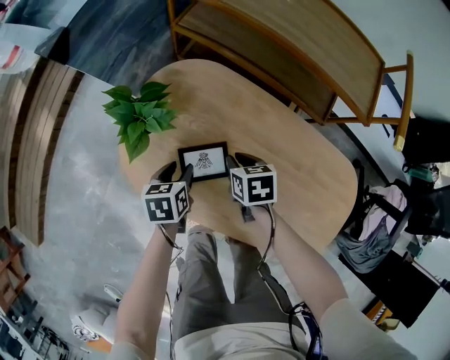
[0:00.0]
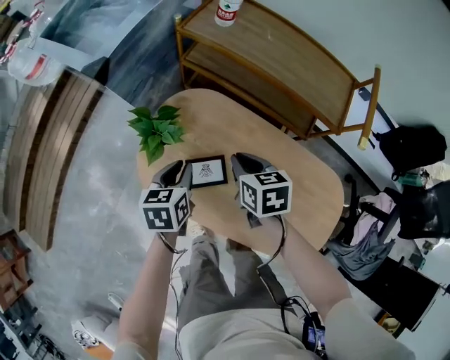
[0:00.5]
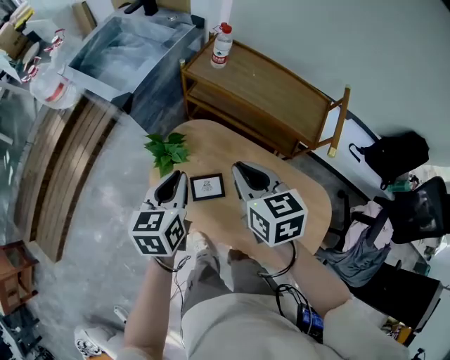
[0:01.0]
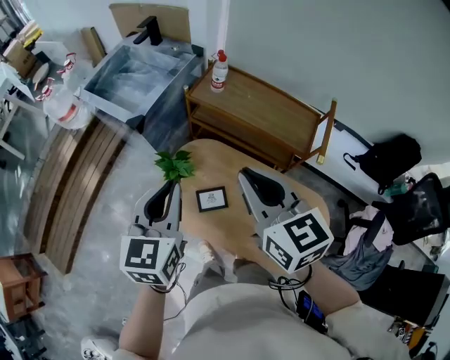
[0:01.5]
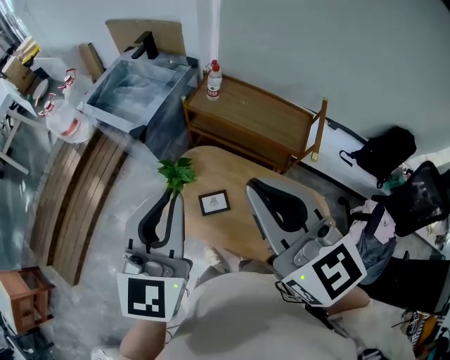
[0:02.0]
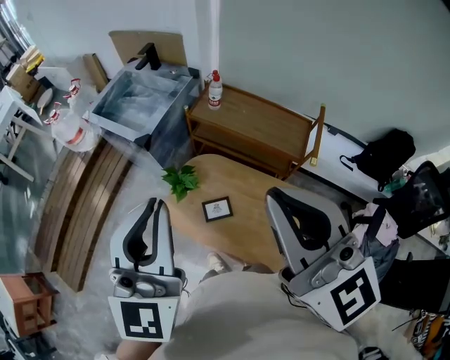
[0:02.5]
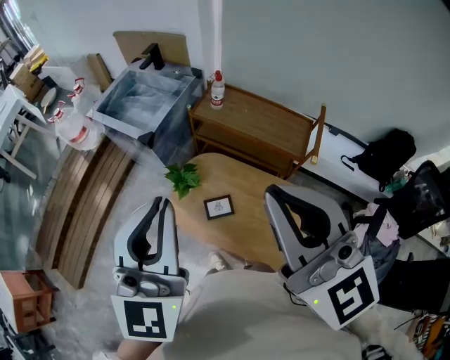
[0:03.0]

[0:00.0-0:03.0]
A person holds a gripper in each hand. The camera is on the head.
0:00.0 to 0:01.5: Both grippers travel together upward, approximately 60 cm. The left gripper angles its fingers upward, by some 40 degrees, and closes up. Meanwhile the right gripper tips its fingers upward by approximately 50 degrees.
0:01.5 to 0:03.0: Both grippers travel together upward and backward, approximately 25 cm. The right gripper changes its angle by approximately 30 degrees. Meanwhile the left gripper turns by about 30 degrees.

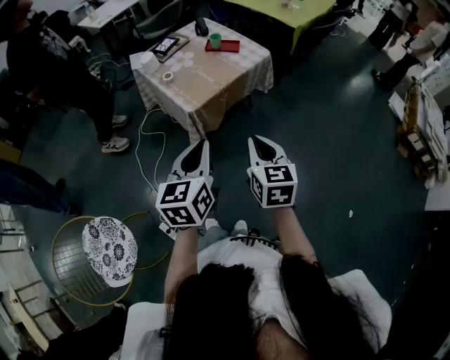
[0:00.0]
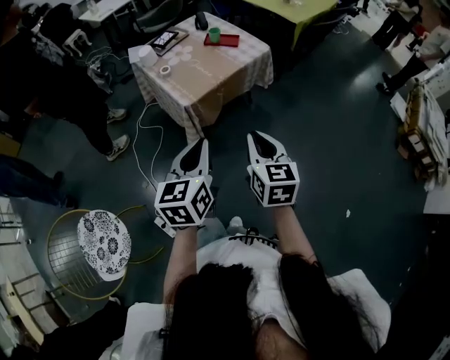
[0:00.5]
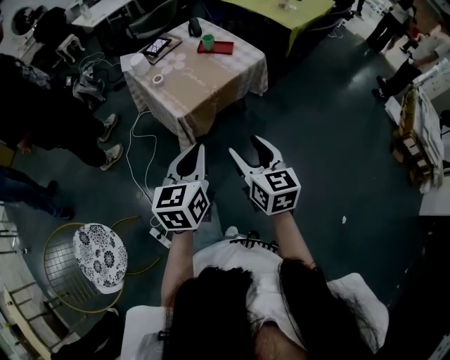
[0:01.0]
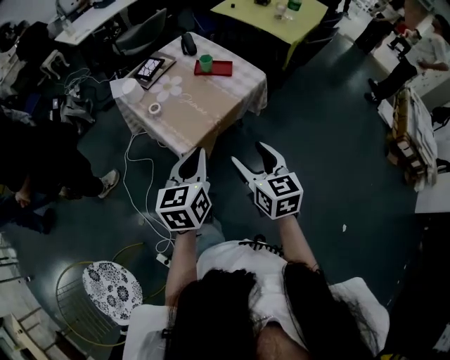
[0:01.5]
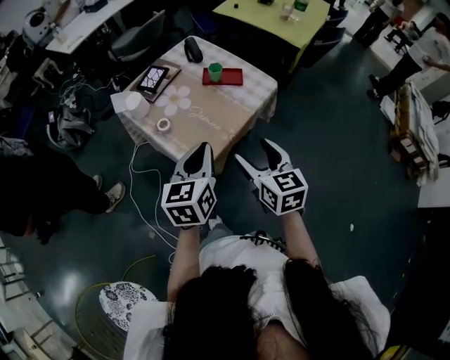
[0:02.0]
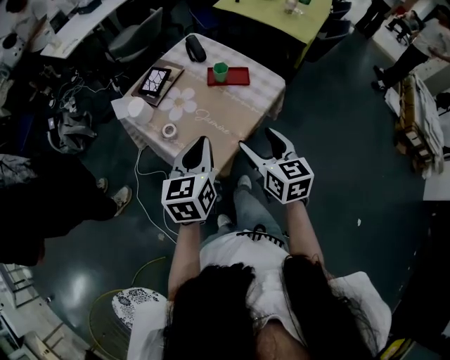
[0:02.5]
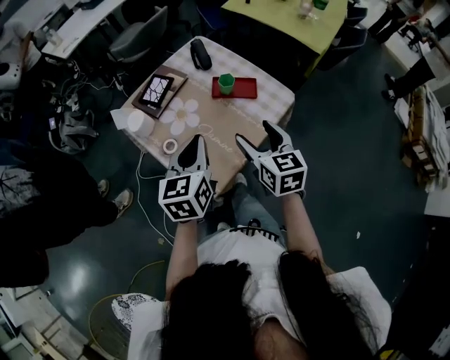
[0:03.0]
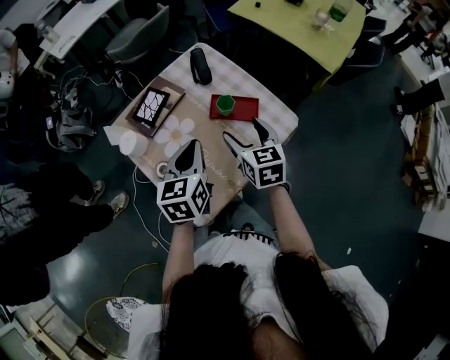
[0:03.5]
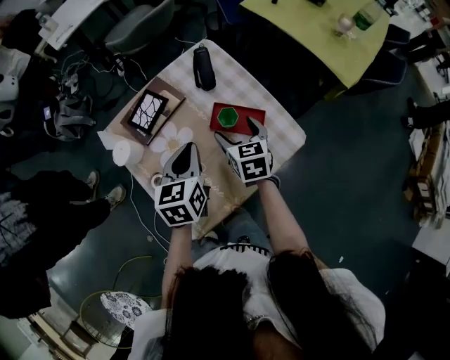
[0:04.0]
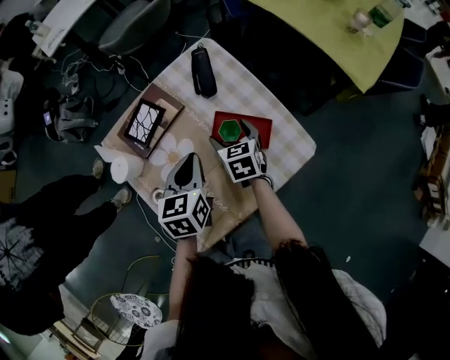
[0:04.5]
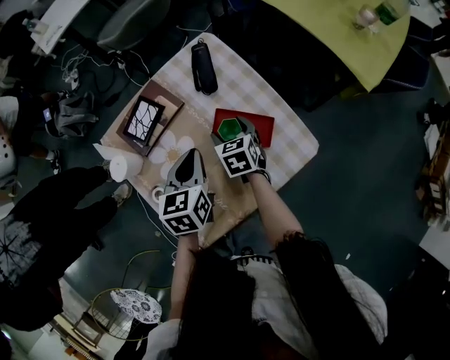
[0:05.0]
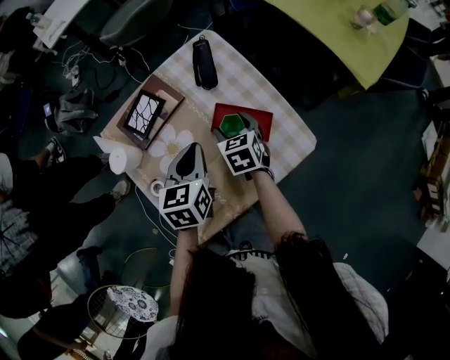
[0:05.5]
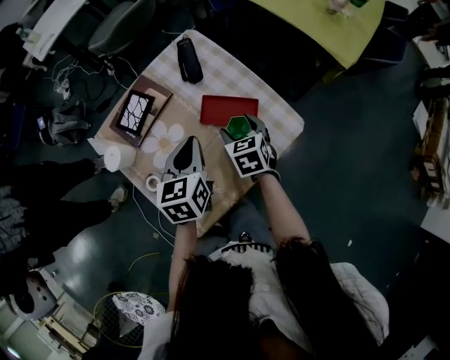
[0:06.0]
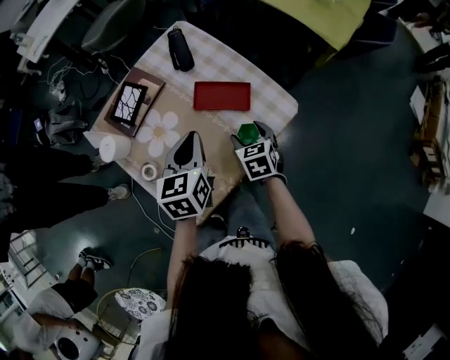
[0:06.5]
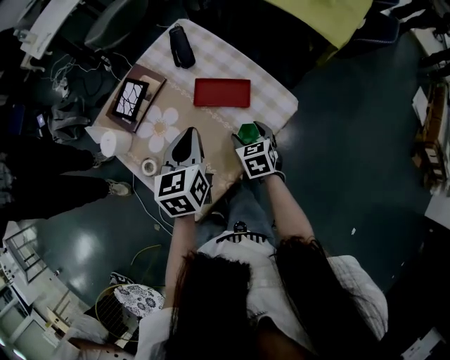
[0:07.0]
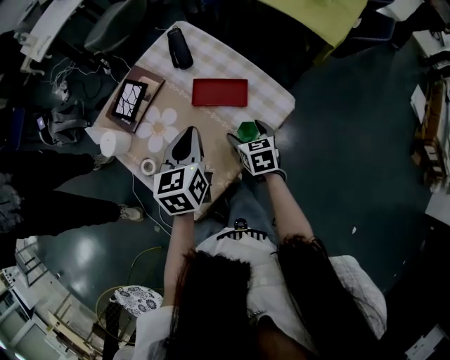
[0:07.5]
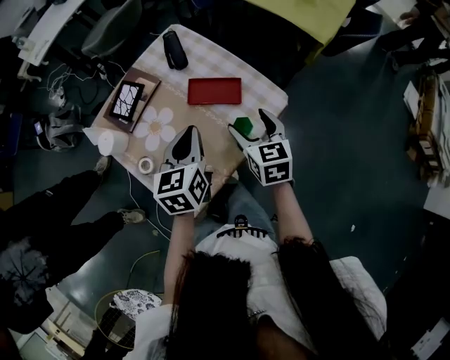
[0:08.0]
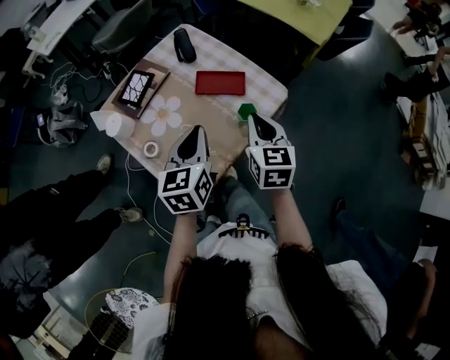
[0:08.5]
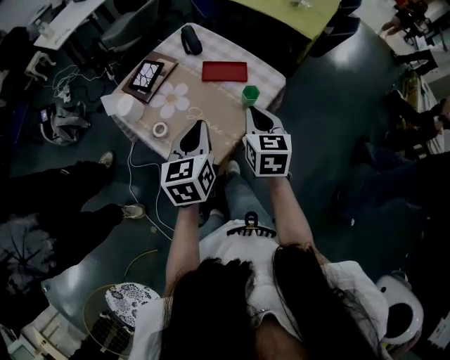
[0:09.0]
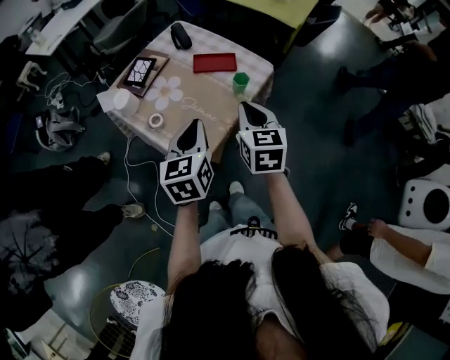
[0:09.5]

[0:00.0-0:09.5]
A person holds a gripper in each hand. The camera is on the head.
0:00.0 to 0:02.0: The grippers both shift forward by roughly 30 cm. The right gripper opens up.
0:02.0 to 0:04.0: Both grippers move forward, roughly 35 cm. The left gripper swivels about 20 degrees.
0:04.0 to 0:05.5: The left gripper changes place by some 5 cm. The right gripper moves downward, about 5 cm.
0:05.5 to 0:07.5: The right gripper moves backward and to the right, approximately 15 cm. The left gripper travels backward by some 5 cm.
0:07.5 to 0:09.5: The left gripper is displaced backward by about 20 cm; the right gripper is displaced upward and backward by some 30 cm, rotates some 30 degrees, and closes its fingers.

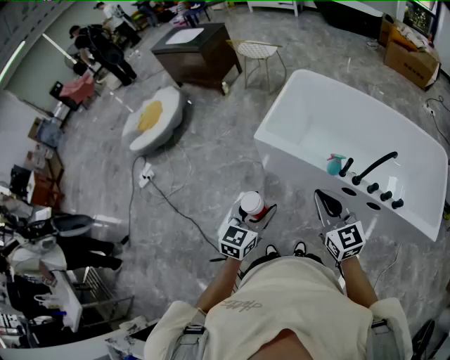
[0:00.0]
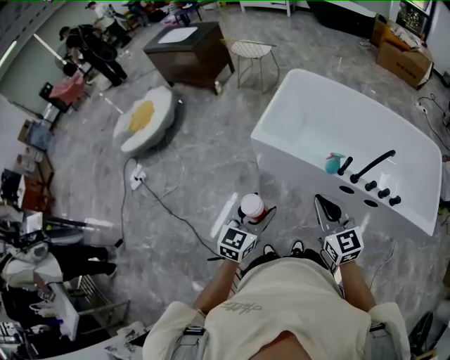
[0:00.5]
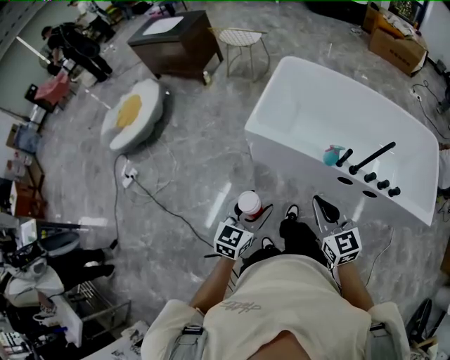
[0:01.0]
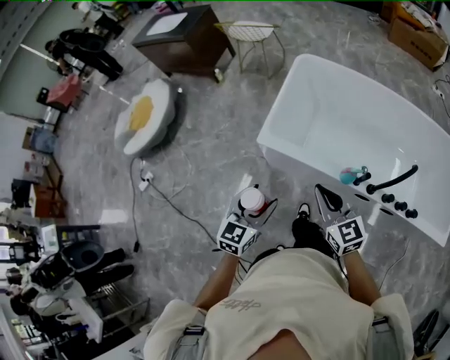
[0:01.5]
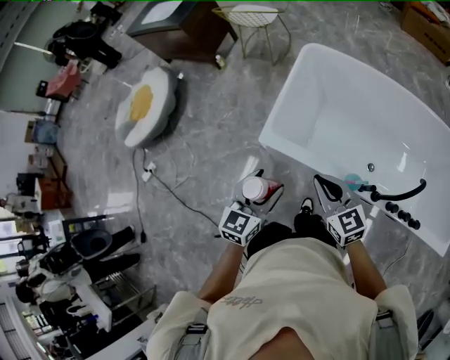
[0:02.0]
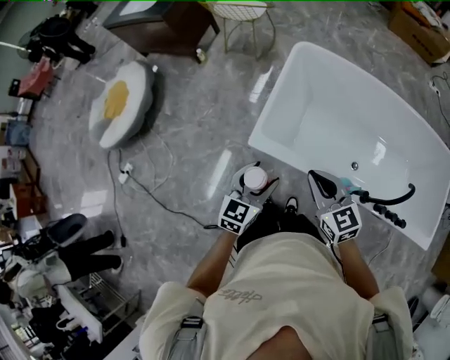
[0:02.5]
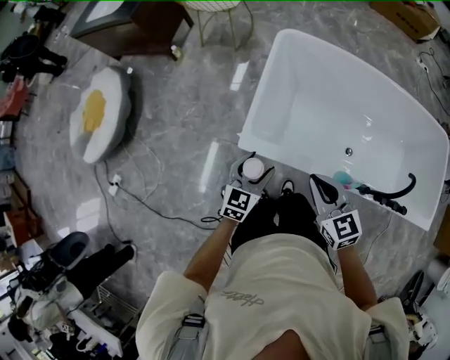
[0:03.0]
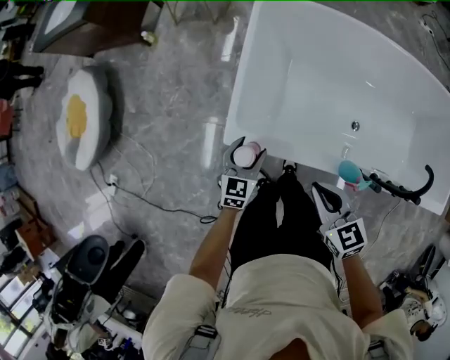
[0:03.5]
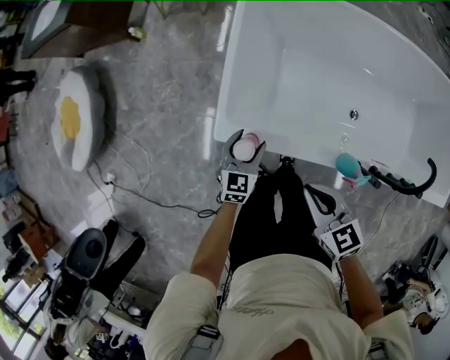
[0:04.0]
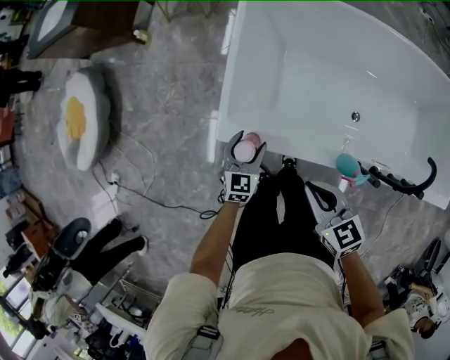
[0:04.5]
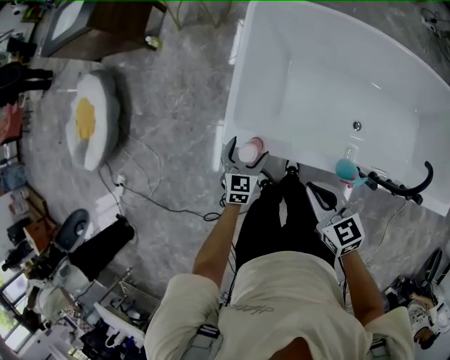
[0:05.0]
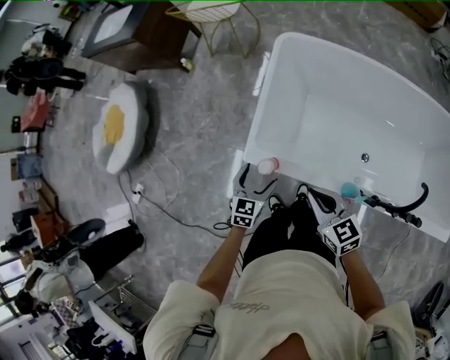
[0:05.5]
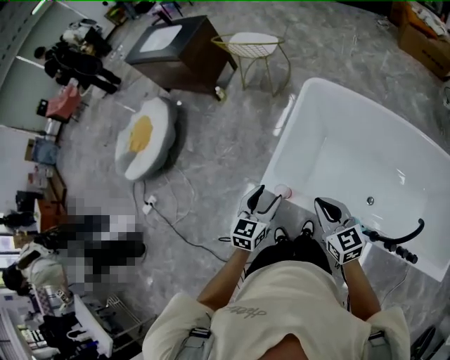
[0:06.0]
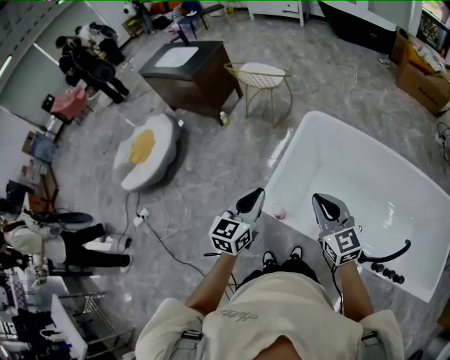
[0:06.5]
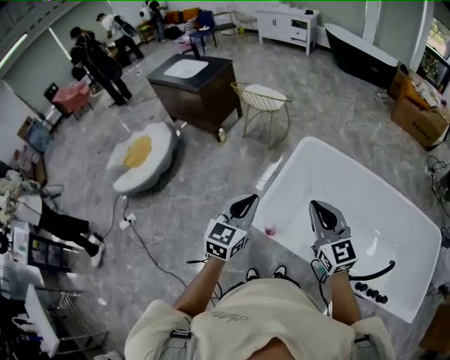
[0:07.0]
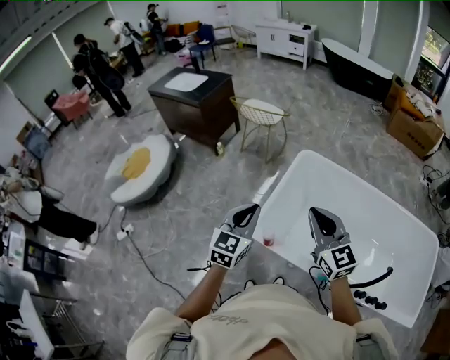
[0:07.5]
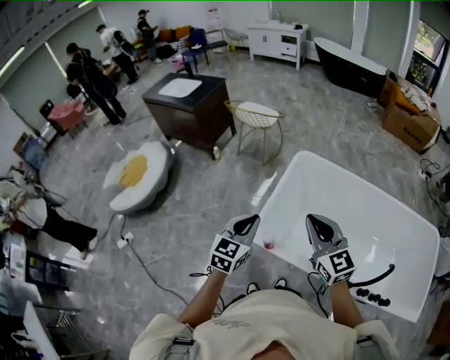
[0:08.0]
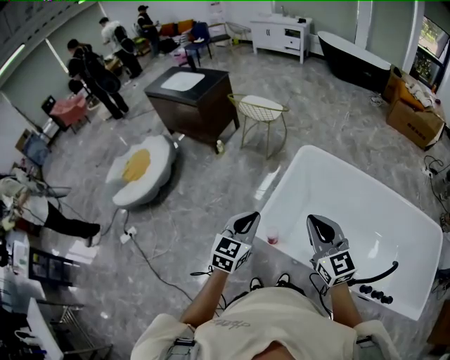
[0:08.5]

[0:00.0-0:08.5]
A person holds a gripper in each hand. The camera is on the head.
0:00.0 to 0:02.0: The two grippers go some 25 cm forward.
0:02.0 to 0:04.0: The left gripper is displaced downward and forward by some 30 cm. Meanwhile the right gripper shifts approximately 10 cm downward, and changes its angle by approximately 20 degrees.
0:04.0 to 0:06.5: The right gripper shifts about 25 cm upward and forward, and changes its angle by roughly 30 degrees. Meanwhile the left gripper goes about 30 cm upward, turns by roughly 30 degrees, and closes.
0:06.5 to 0:08.5: The right gripper moves upward, some 5 cm.

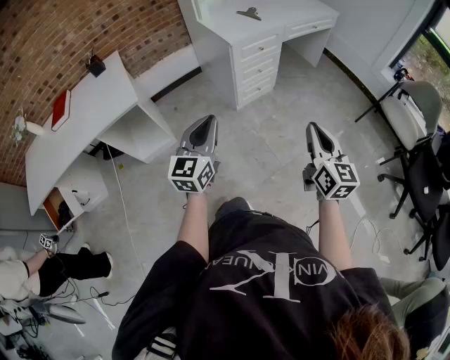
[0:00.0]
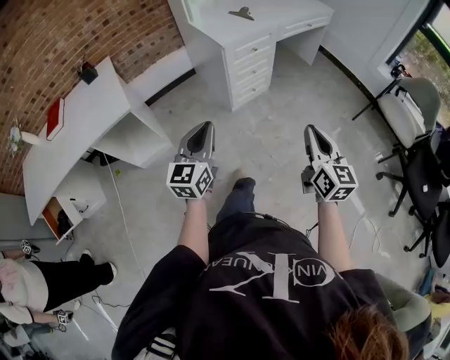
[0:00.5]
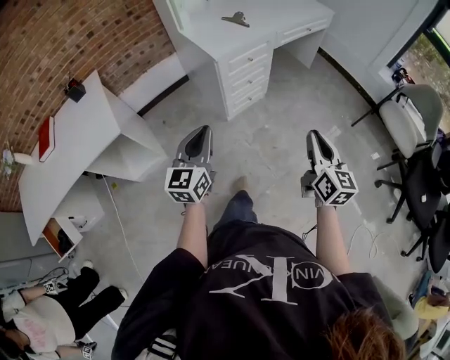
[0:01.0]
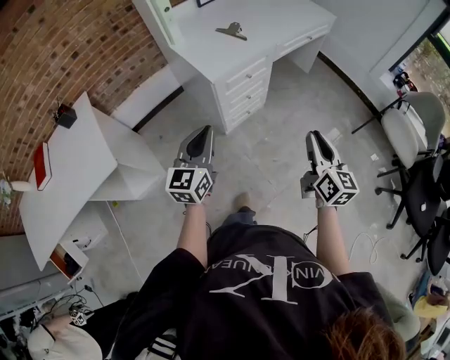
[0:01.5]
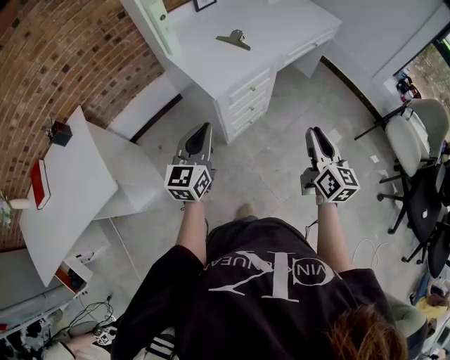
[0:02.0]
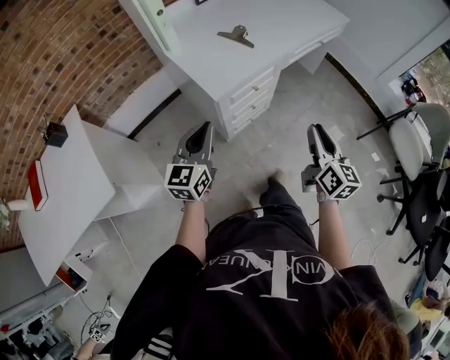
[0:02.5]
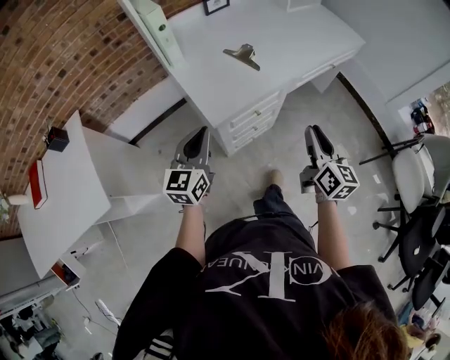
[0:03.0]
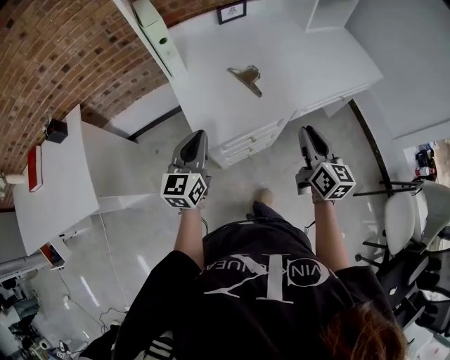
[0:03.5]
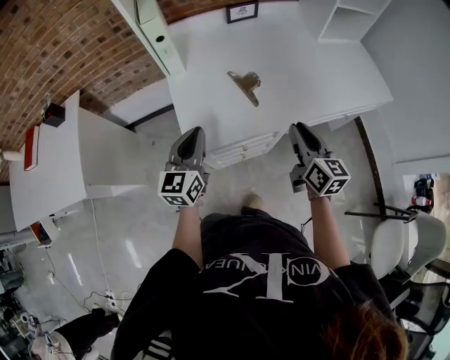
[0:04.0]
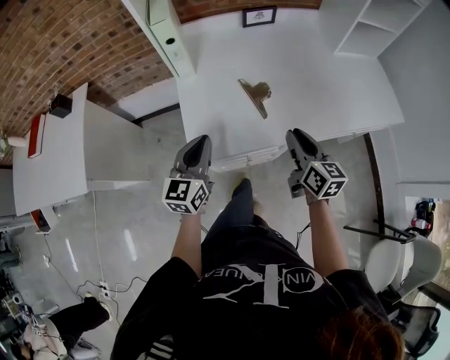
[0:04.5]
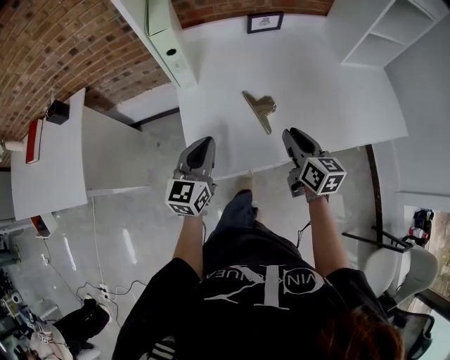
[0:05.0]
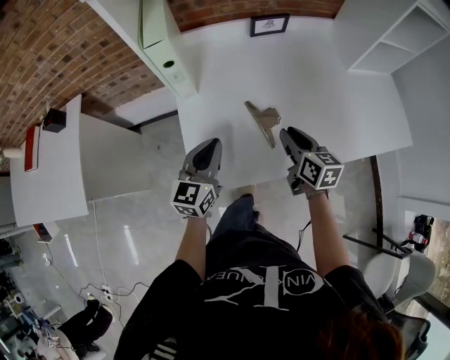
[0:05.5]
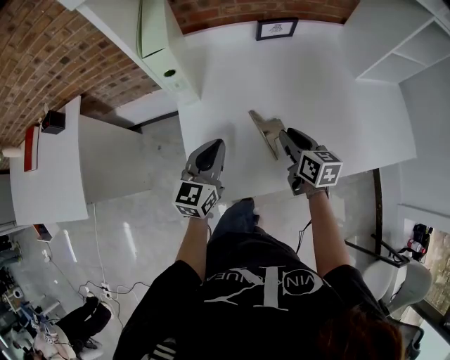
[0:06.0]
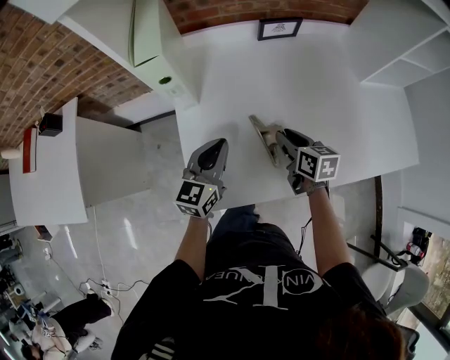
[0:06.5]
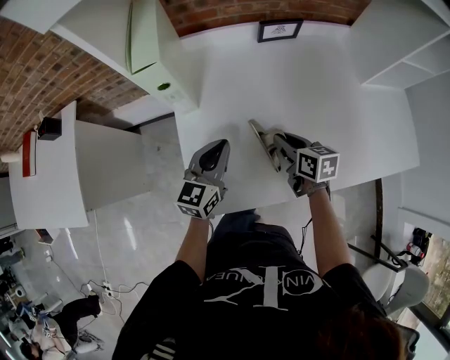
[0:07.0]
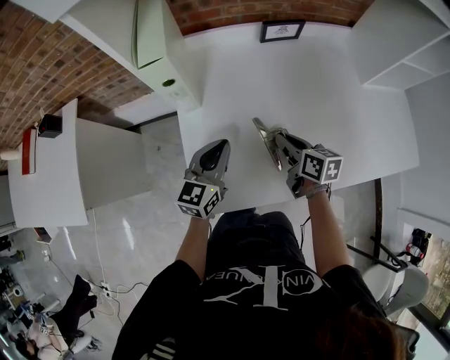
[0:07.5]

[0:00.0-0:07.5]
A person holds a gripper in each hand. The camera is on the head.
0:00.0 to 0:02.0: Both grippers travel together forward, about 35 cm.
0:02.0 to 0:04.0: The left gripper changes place by roughly 25 cm, and turns by roughly 30 degrees. The right gripper moves about 40 cm, and turns by some 30 degrees.
0:04.0 to 0:05.5: The left gripper moves forward, about 10 cm; the right gripper shifts roughly 20 cm forward and downward.
0:05.5 to 0:07.5: The two grippers go approximately 5 cm forward.
